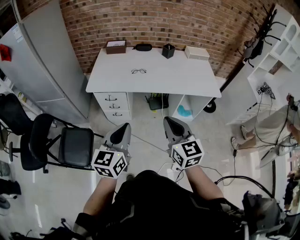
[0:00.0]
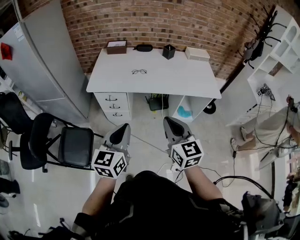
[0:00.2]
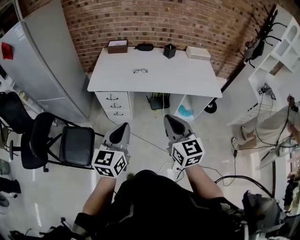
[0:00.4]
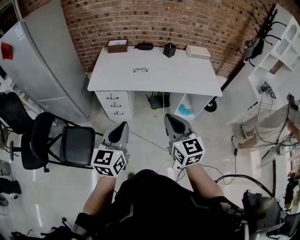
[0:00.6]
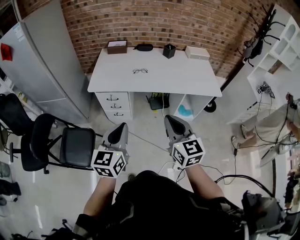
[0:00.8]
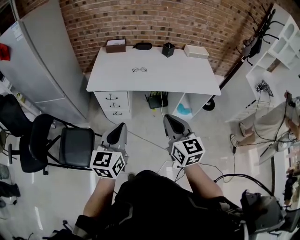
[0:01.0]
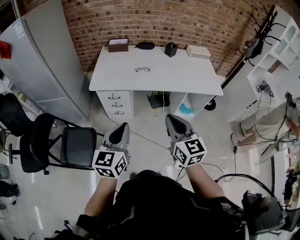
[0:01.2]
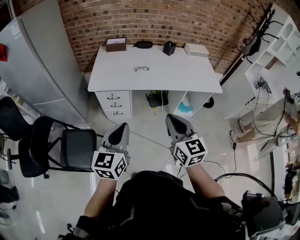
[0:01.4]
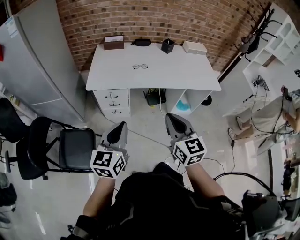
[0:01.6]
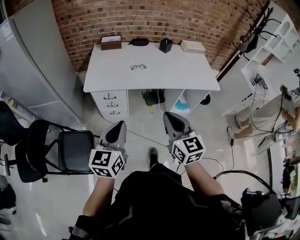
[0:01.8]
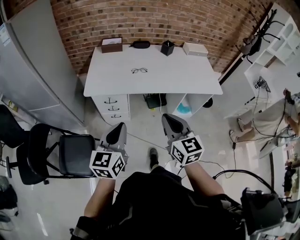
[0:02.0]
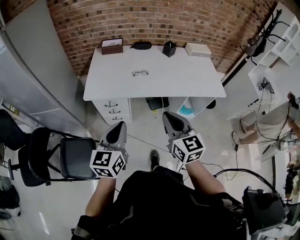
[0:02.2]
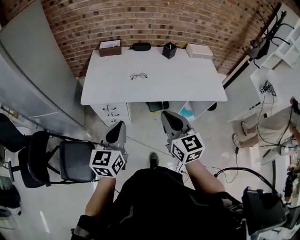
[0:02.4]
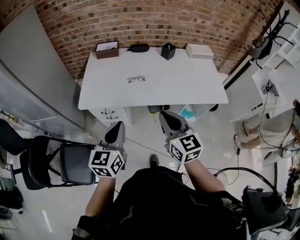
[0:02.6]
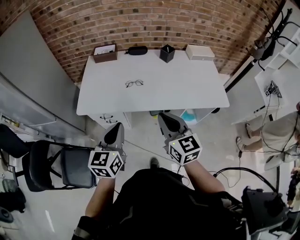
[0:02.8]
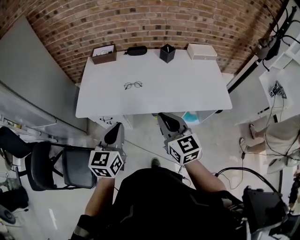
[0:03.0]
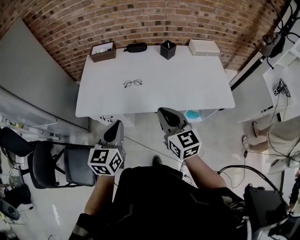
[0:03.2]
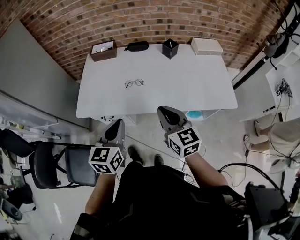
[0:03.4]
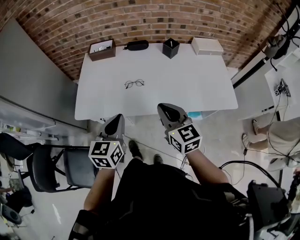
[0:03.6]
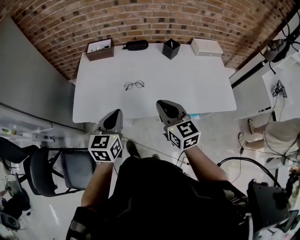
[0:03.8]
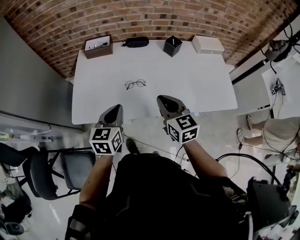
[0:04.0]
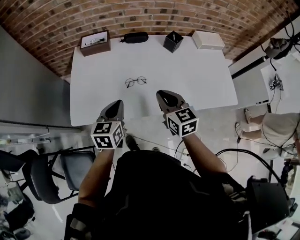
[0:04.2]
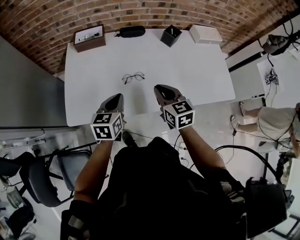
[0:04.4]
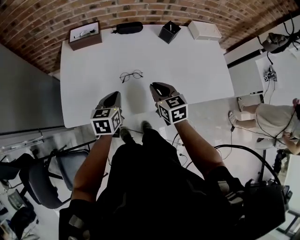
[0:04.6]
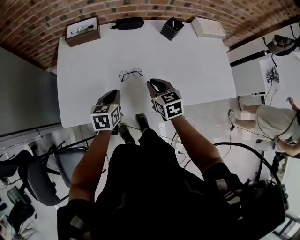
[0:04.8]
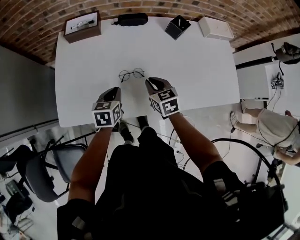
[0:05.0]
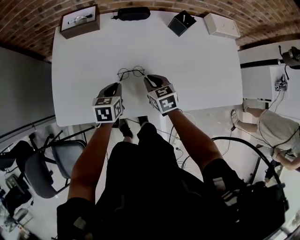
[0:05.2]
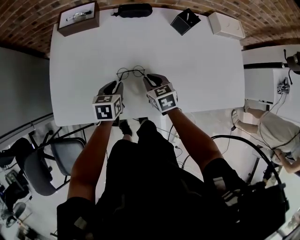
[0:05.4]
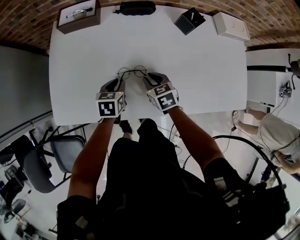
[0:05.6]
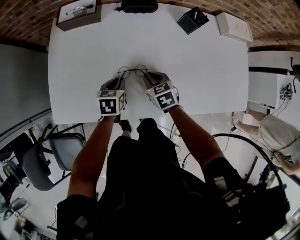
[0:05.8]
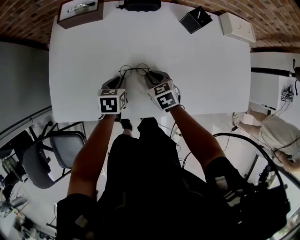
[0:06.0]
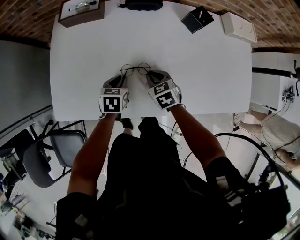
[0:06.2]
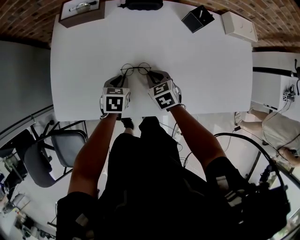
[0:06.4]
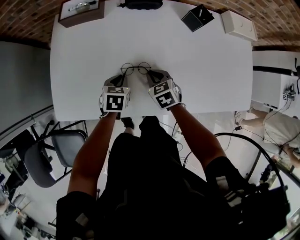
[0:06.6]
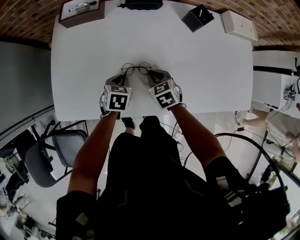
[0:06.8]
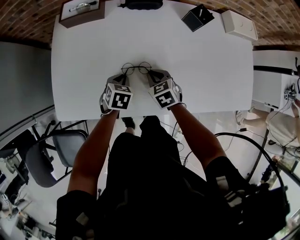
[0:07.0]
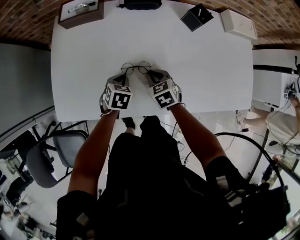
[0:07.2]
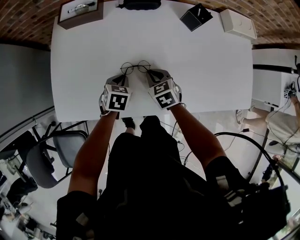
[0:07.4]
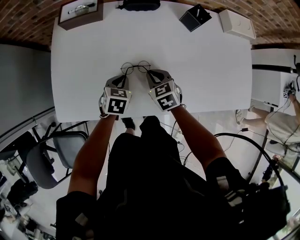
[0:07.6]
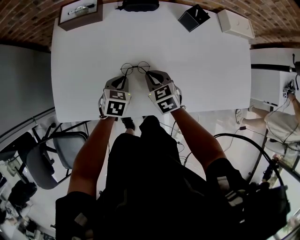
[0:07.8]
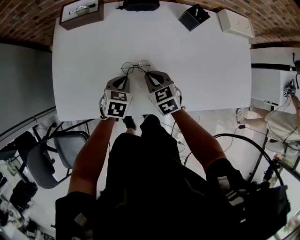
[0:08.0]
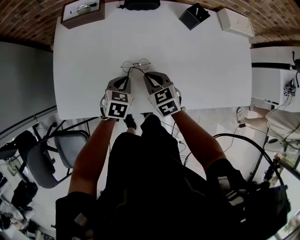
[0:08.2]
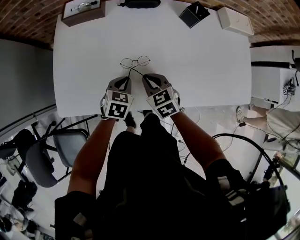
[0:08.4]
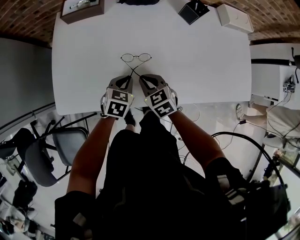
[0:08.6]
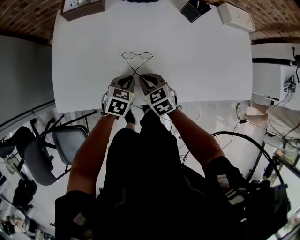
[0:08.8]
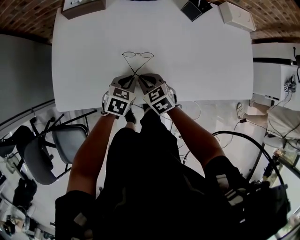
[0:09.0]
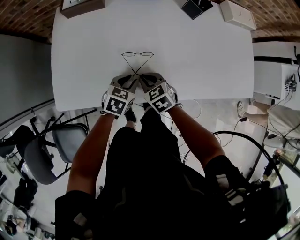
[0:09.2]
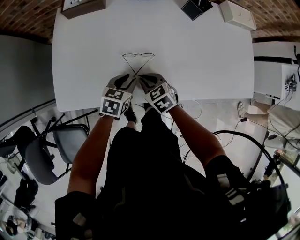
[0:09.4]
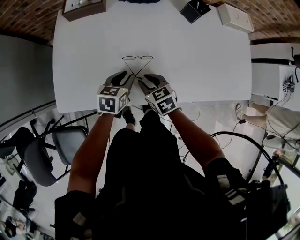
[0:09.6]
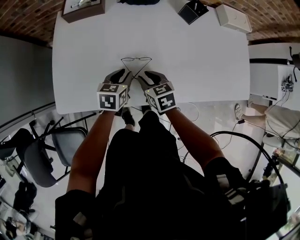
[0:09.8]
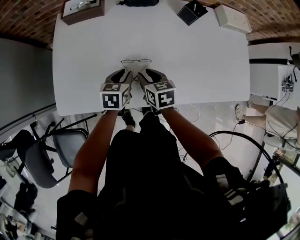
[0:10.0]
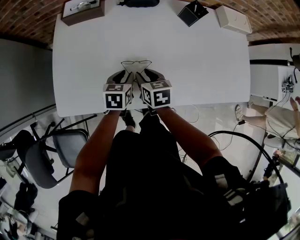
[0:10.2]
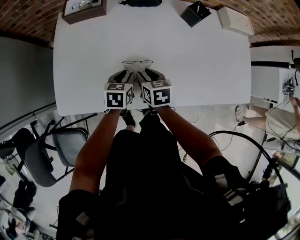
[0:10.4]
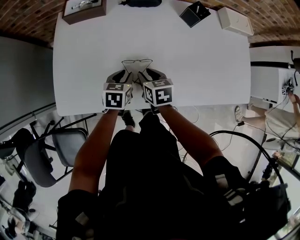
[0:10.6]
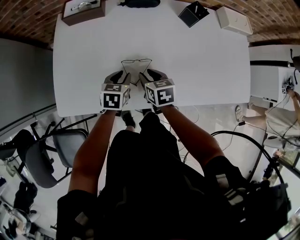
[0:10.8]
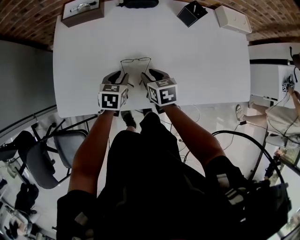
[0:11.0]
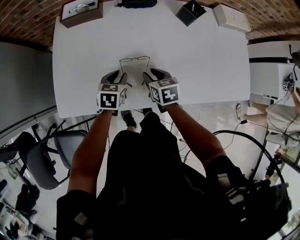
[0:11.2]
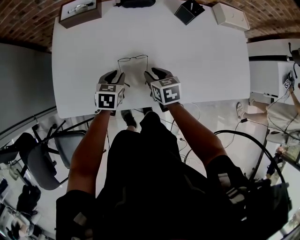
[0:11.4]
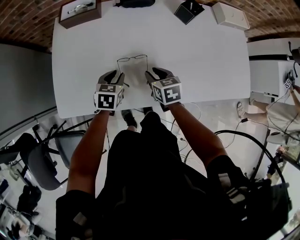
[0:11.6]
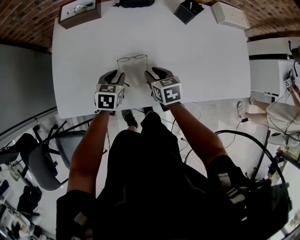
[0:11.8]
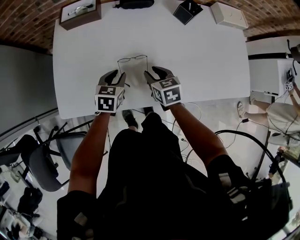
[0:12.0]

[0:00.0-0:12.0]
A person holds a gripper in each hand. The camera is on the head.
0:00.0 to 0:01.6: The grippers both shift to the left by about 10 cm.
0:01.6 to 0:03.0: The left gripper shifts roughly 25 cm forward and to the right; the right gripper is displaced forward by approximately 25 cm.
0:03.0 to 0:04.4: Both grippers move forward and downward, approximately 25 cm.
0:04.4 to 0:06.0: Both grippers move downward and forward, approximately 25 cm. The right gripper changes its angle by approximately 30 degrees. The left gripper turns by some 20 degrees.
0:07.6 to 0:09.0: The left gripper heads backward, covering roughly 5 cm; the right gripper heads backward and to the left, covering some 10 cm.
0:09.0 to 0:10.4: The two grippers go approximately 5 cm forward. The right gripper rotates about 30 degrees, and opens, while the left gripper opens up.
0:10.4 to 0:12.0: There are only small adjustments of the grippers.

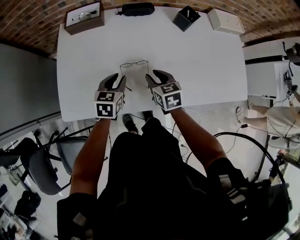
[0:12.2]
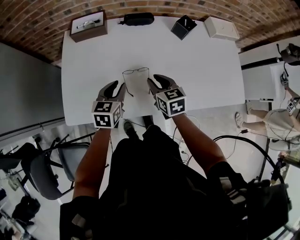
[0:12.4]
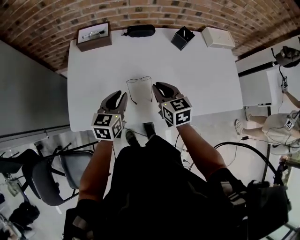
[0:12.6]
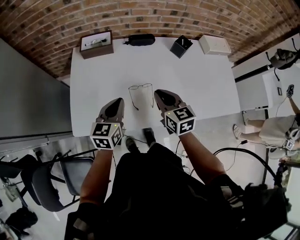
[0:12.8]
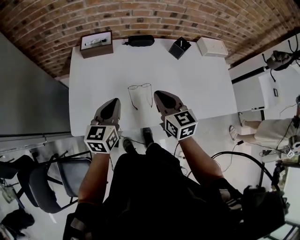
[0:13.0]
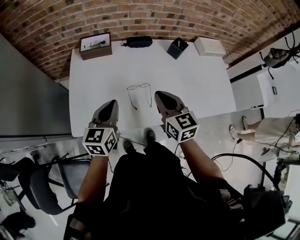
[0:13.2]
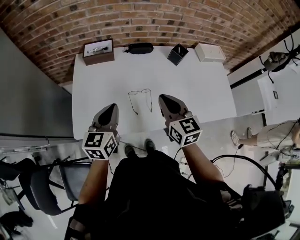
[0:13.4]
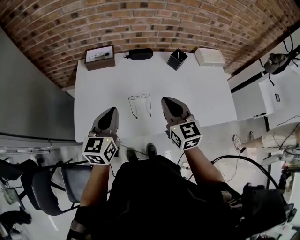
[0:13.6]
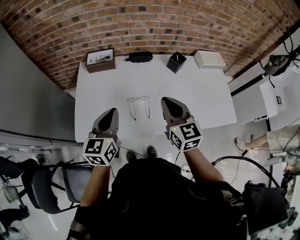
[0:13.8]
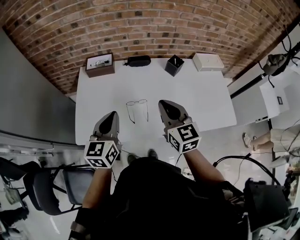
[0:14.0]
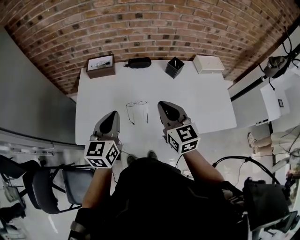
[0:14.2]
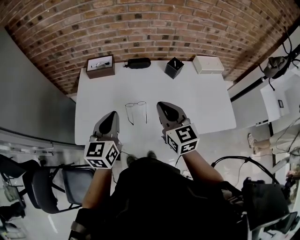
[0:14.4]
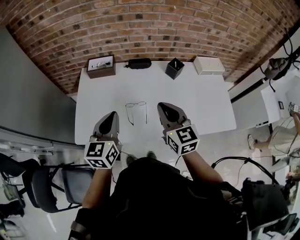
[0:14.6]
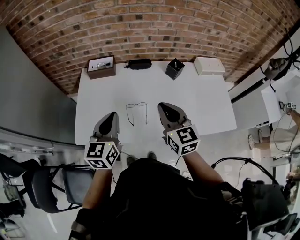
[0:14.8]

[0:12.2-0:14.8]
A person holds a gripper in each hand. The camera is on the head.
0:12.2 to 0:13.4: Both grippers travel together upward, some 20 cm. The right gripper changes its angle by about 20 degrees, and closes its fingers. The left gripper rotates some 20 degrees, and closes its fingers.
0:13.4 to 0:14.8: The two grippers go approximately 5 cm upward.

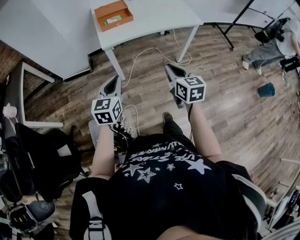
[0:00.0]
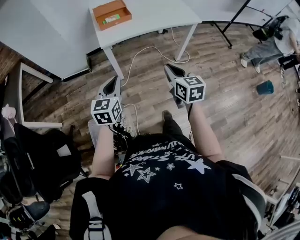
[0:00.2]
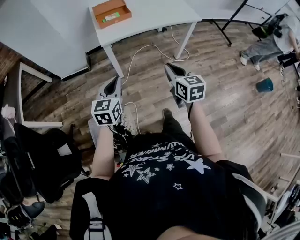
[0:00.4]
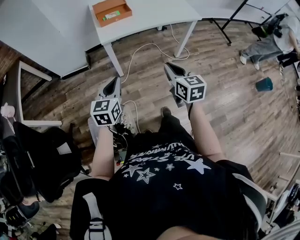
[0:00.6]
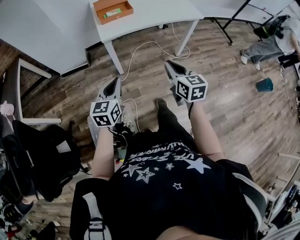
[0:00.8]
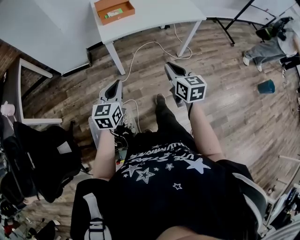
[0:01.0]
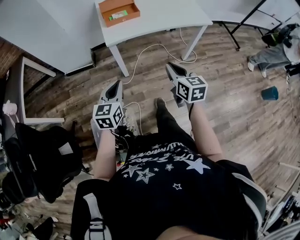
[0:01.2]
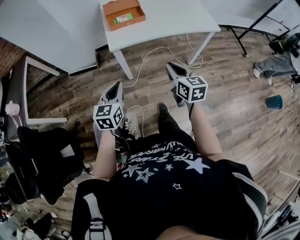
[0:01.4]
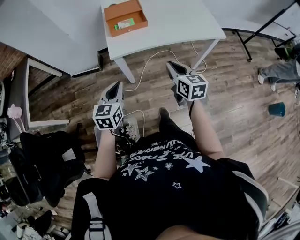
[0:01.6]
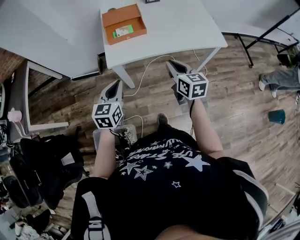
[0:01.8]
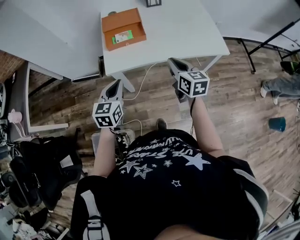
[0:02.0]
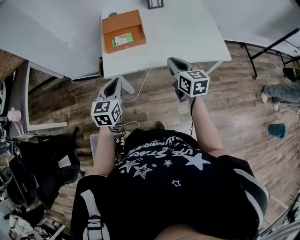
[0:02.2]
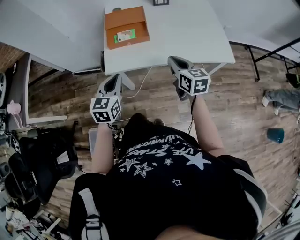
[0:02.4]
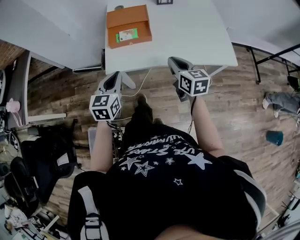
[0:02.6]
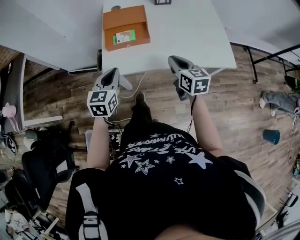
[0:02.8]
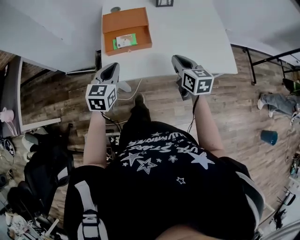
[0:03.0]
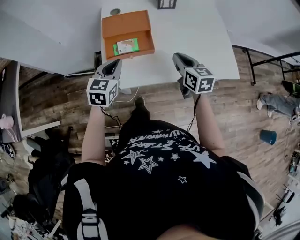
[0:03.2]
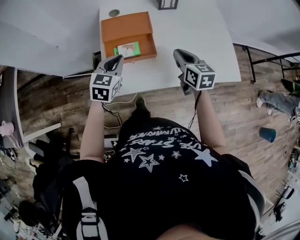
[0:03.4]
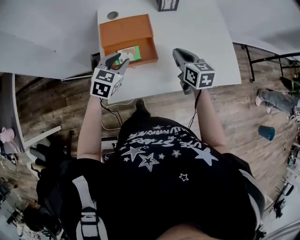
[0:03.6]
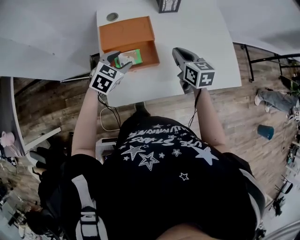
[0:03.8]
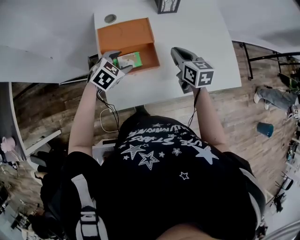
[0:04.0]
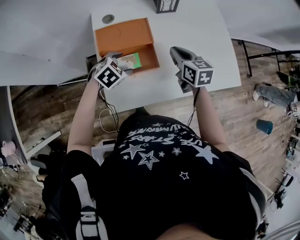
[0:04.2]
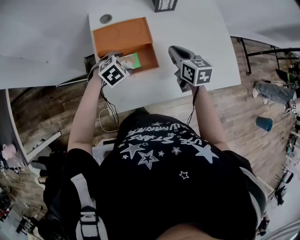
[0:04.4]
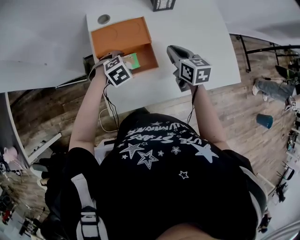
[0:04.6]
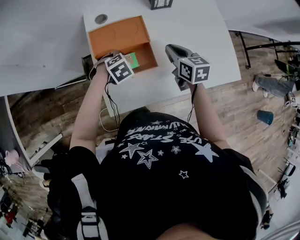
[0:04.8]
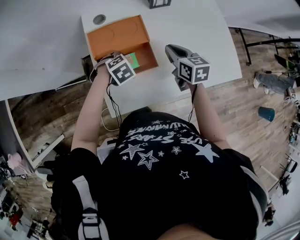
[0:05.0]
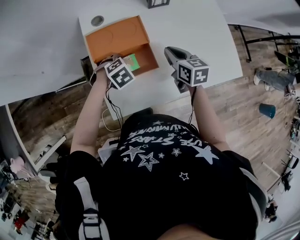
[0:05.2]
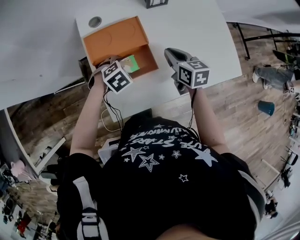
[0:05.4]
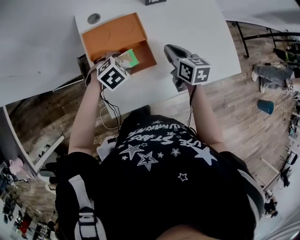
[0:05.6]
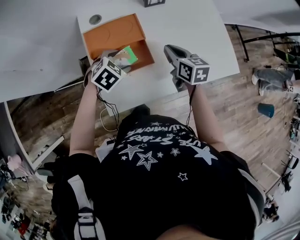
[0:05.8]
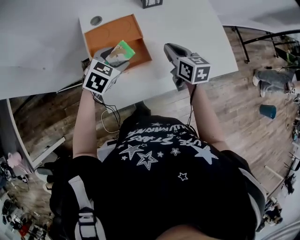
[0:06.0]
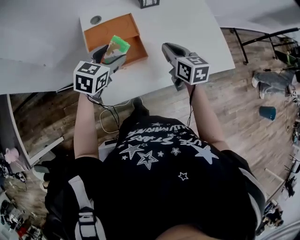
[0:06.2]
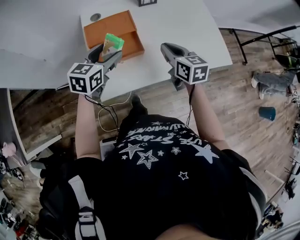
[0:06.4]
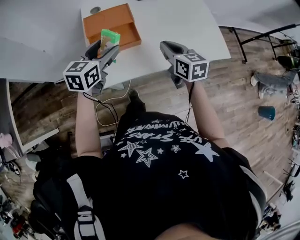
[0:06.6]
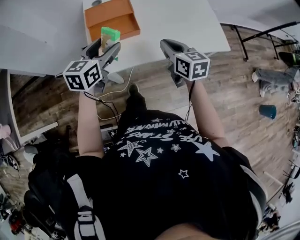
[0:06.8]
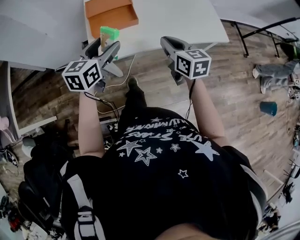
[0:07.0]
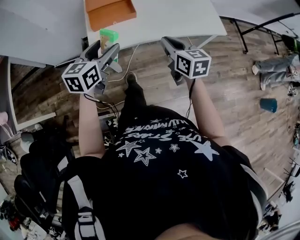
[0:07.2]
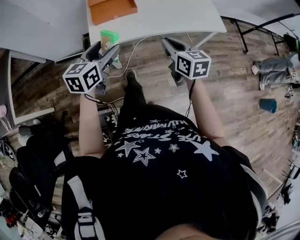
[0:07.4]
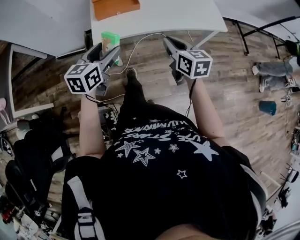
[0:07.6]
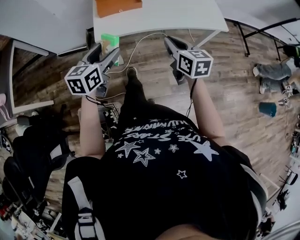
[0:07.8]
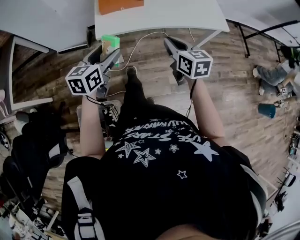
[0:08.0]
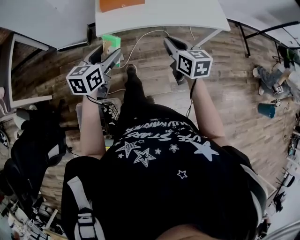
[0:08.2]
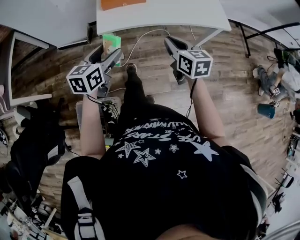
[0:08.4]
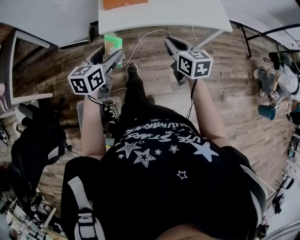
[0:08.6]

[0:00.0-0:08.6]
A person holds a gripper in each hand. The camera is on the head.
0:00.0 to 0:01.4: The right gripper shifts approximately 15 cm forward; the left gripper heads forward, covering roughly 10 cm.
0:01.4 to 0:02.8: The two grippers go approximately 30 cm forward.
0:02.8 to 0:04.4: The left gripper is displaced forward and downward by some 30 cm, angles its fingers downward, by some 40 degrees, and opens its fingers, while the right gripper goes roughly 25 cm forward.
0:04.4 to 0:05.8: There are only small adjustments of the grippers.
0:05.8 to 0:07.2: The left gripper is displaced backward and upward by some 35 cm, and tilts its fingers approximately 40 degrees upward, while the right gripper moves backward, some 30 cm.
0:07.2 to 0:08.6: The left gripper travels backward and downward by some 15 cm, while the right gripper is displaced backward by approximately 10 cm.
